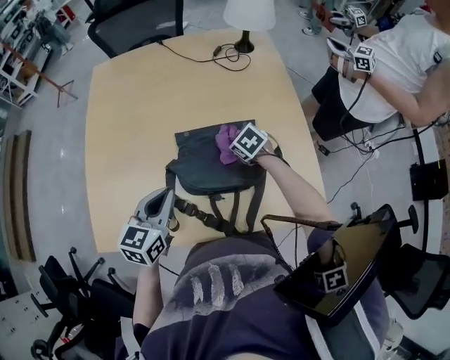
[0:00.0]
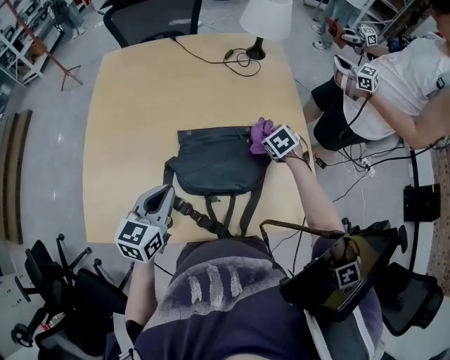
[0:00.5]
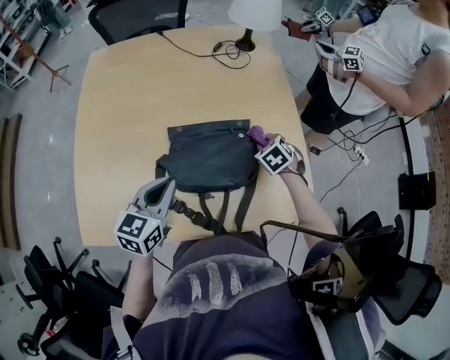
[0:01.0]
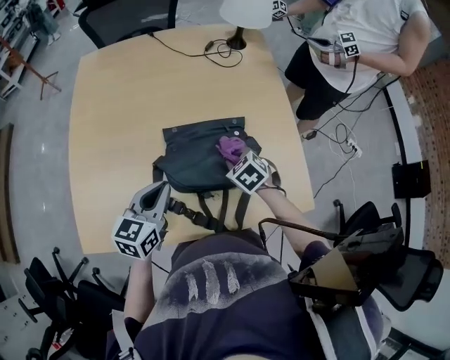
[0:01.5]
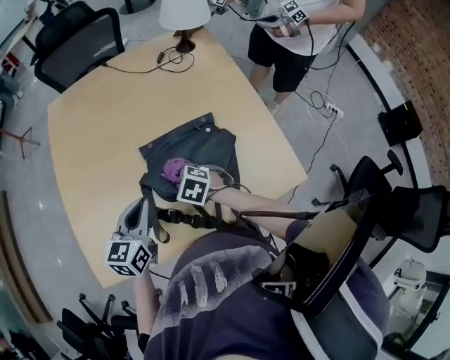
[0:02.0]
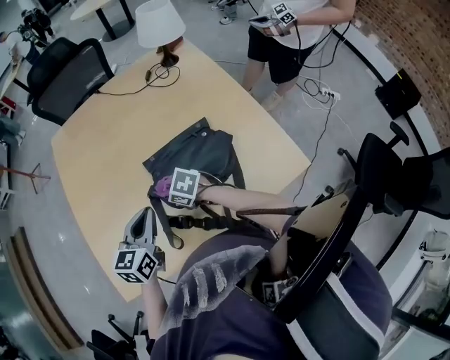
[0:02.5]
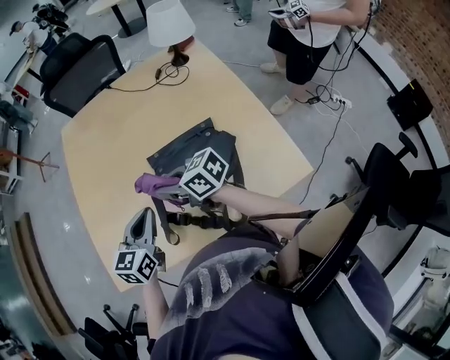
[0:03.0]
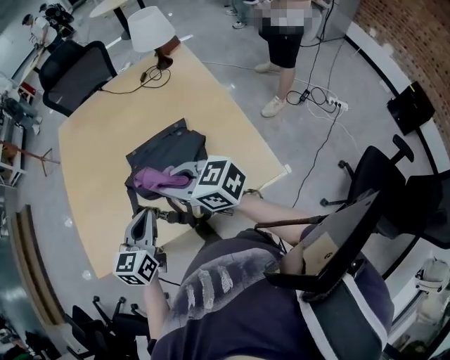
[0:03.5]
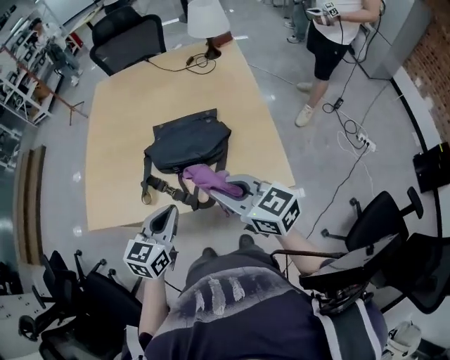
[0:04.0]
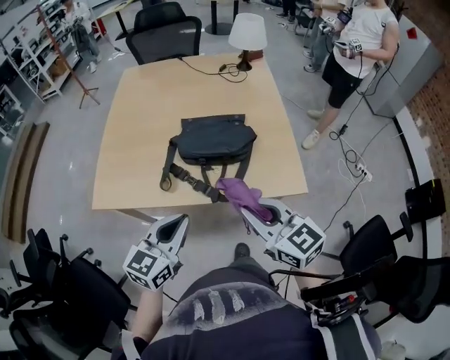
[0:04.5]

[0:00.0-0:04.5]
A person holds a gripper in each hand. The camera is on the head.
0:00.0 to 0:02.0: The right gripper is displaced to the left and backward by about 15 cm.
0:02.0 to 0:04.5: The left gripper travels backward by roughly 30 cm. Meanwhile the right gripper heads backward and upward, covering approximately 40 cm, and tips its fingers upward by about 40 degrees.

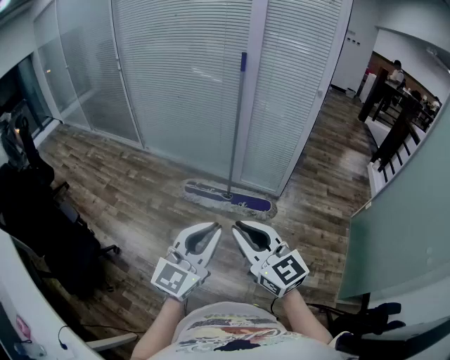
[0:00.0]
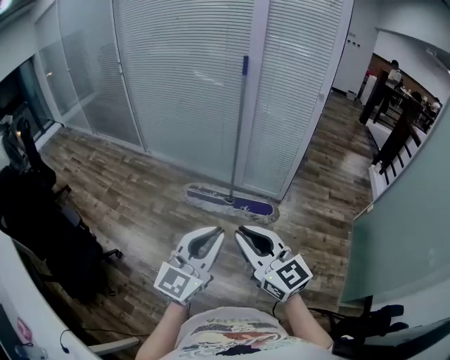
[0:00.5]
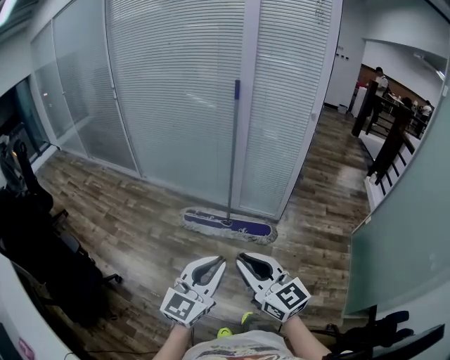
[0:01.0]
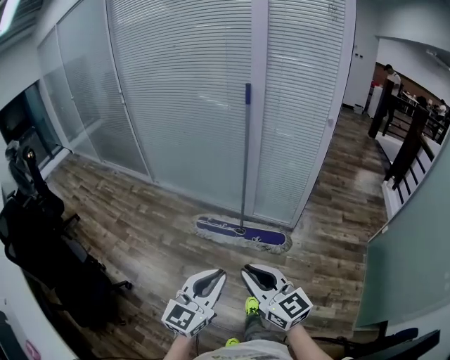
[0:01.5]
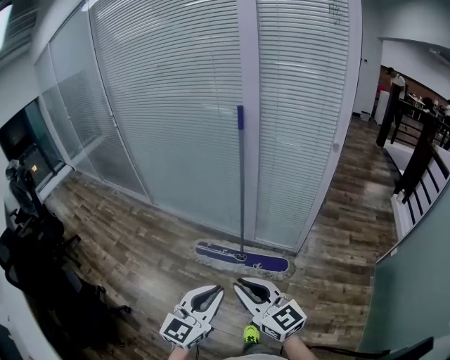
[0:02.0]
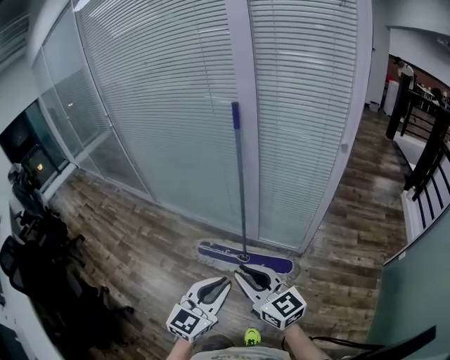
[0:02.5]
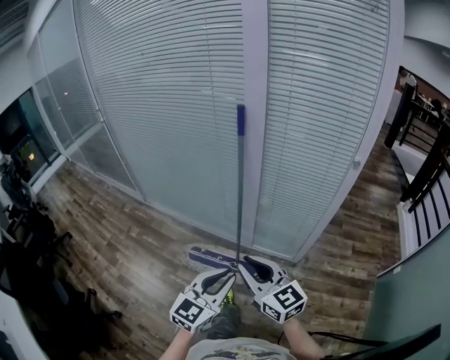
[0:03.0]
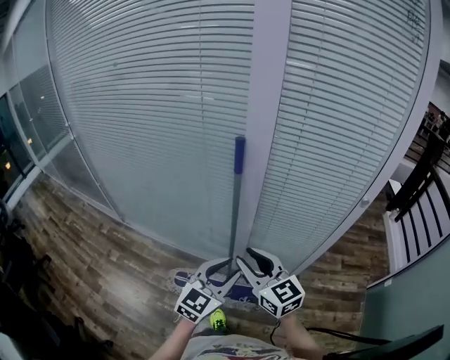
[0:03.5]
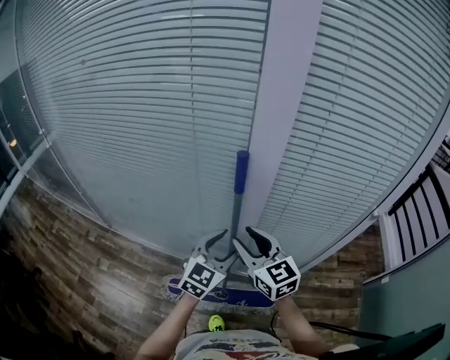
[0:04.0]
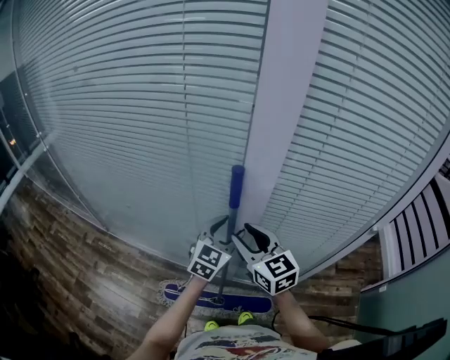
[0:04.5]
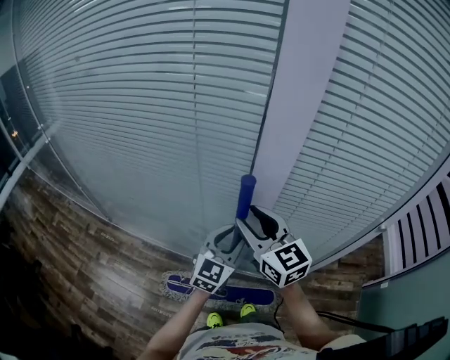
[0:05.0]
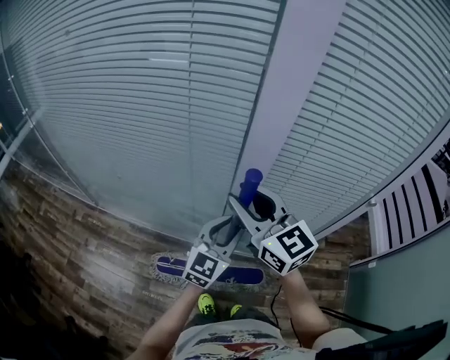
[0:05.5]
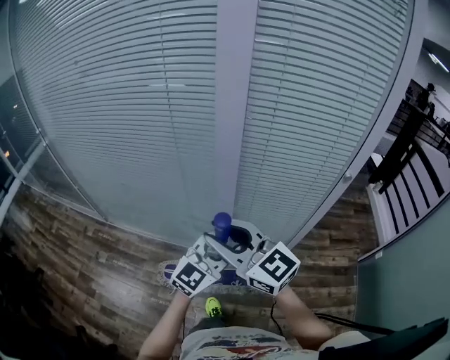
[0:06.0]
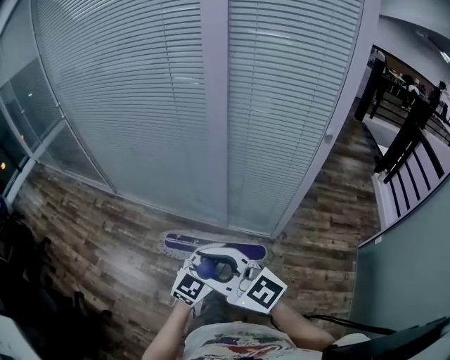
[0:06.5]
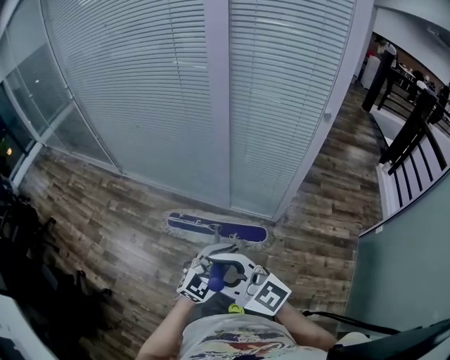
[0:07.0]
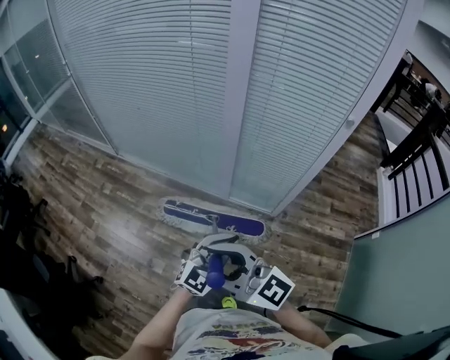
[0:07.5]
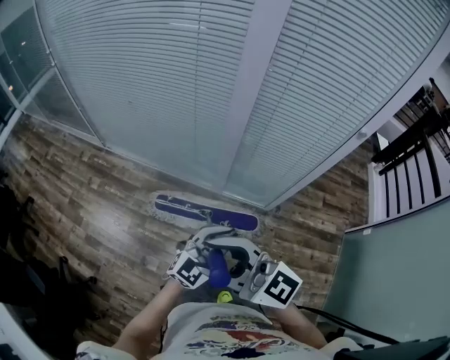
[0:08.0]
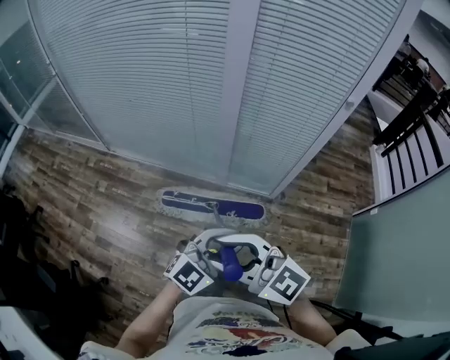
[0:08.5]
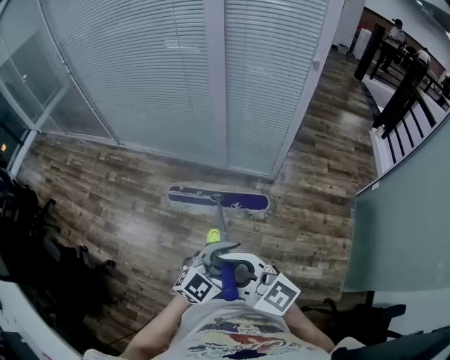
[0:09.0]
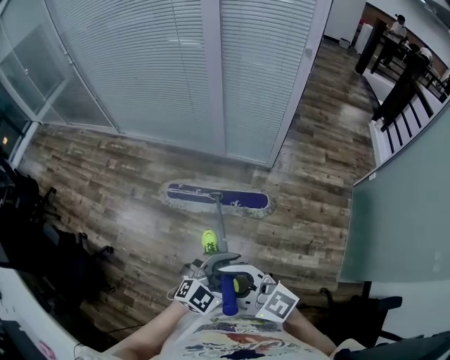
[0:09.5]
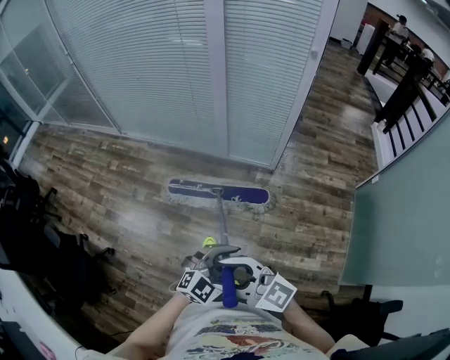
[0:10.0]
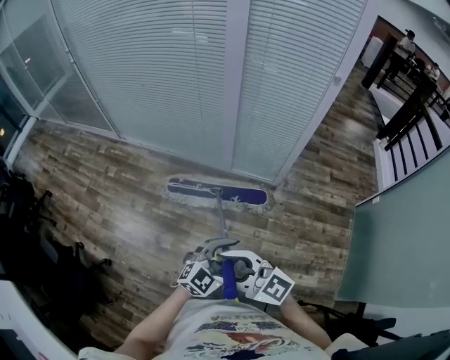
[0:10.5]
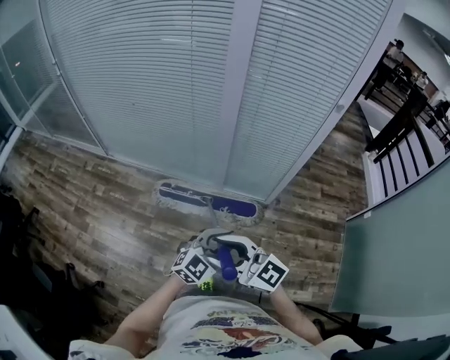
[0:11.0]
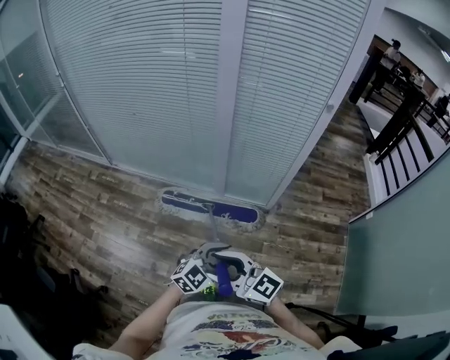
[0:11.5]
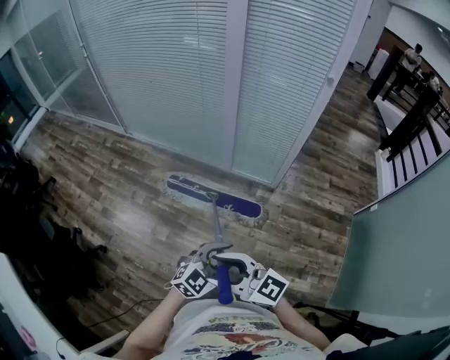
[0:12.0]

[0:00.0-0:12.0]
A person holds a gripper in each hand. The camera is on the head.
0:00.0 to 0:02.0: The two grippers go about 25 cm forward.
0:02.0 to 0:04.0: The two grippers travel together, forward, roughly 70 cm. The right gripper turns by approximately 20 degrees, and opens its fingers. Meanwhile the left gripper opens its fingers.
0:04.0 to 0:06.0: The left gripper moves backward and to the right, about 15 cm. Meanwhile the right gripper travels backward and upward by about 20 cm, and turns by roughly 20 degrees.
0:06.0 to 0:08.0: The right gripper heads backward, covering approximately 20 cm, and changes its angle by approximately 20 degrees. Meanwhile the left gripper goes about 20 cm backward and downward, and closes its fingers.
0:08.0 to 0:10.0: Both grippers are carried some 40 cm.

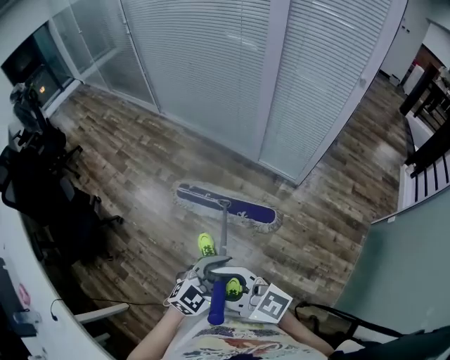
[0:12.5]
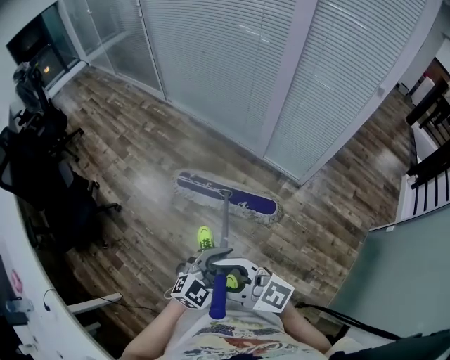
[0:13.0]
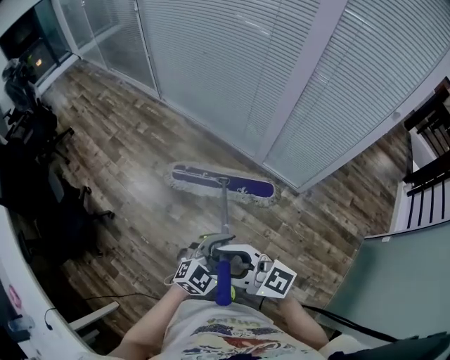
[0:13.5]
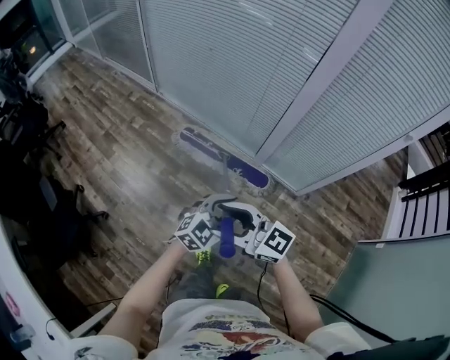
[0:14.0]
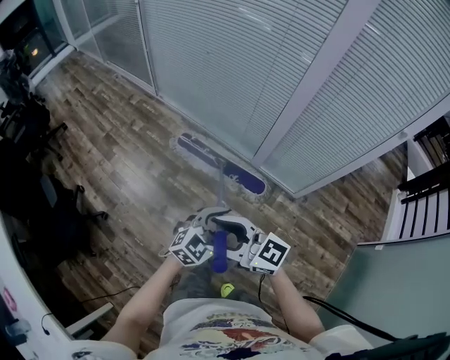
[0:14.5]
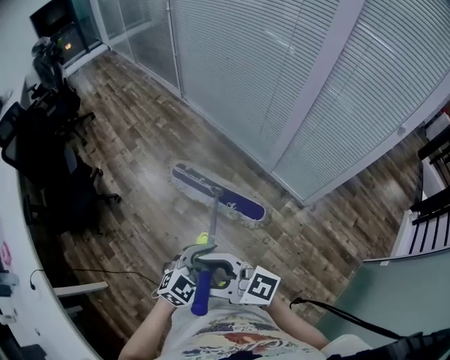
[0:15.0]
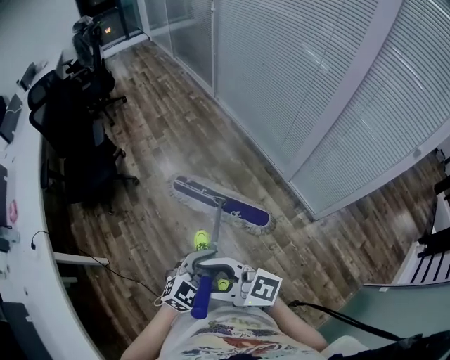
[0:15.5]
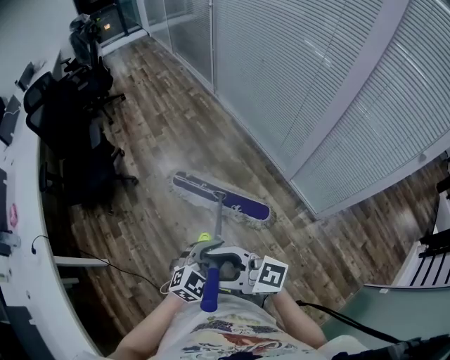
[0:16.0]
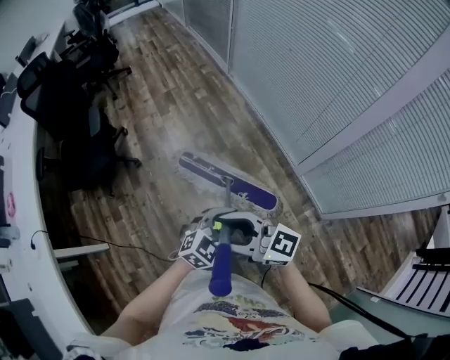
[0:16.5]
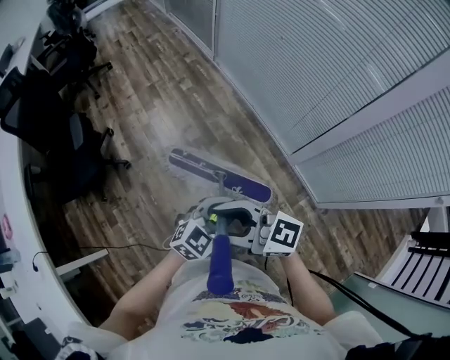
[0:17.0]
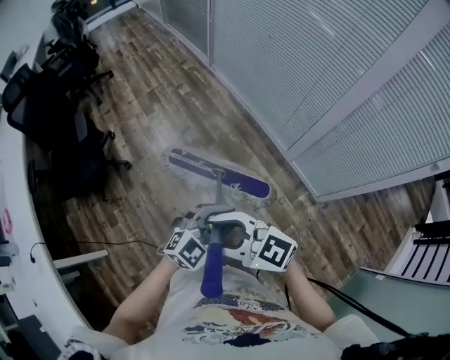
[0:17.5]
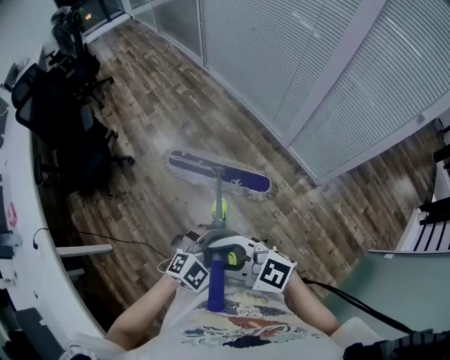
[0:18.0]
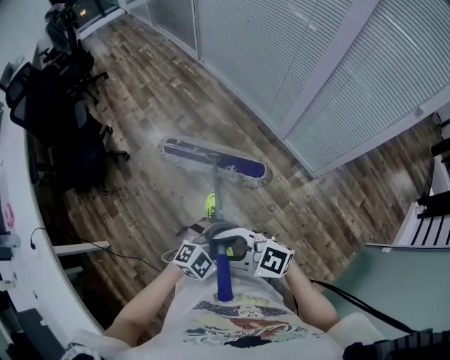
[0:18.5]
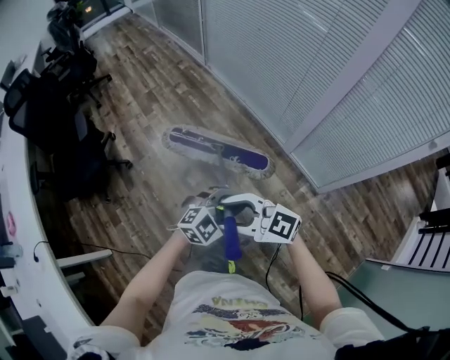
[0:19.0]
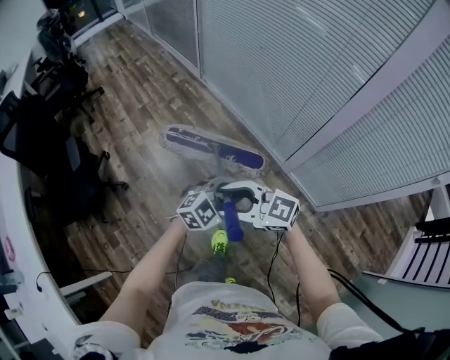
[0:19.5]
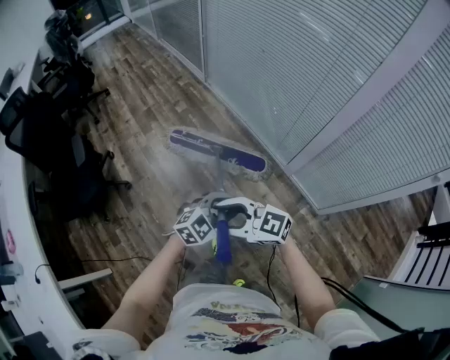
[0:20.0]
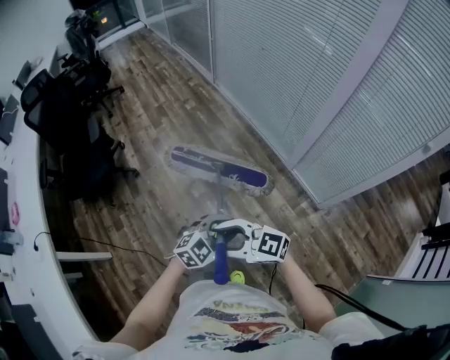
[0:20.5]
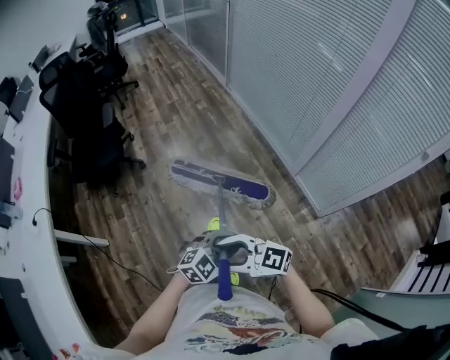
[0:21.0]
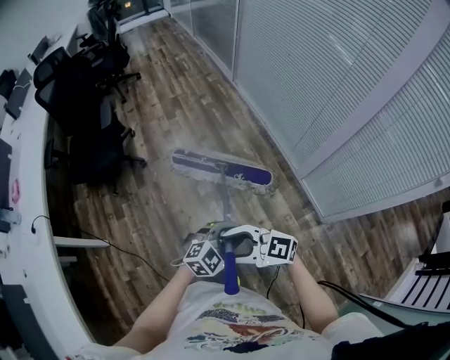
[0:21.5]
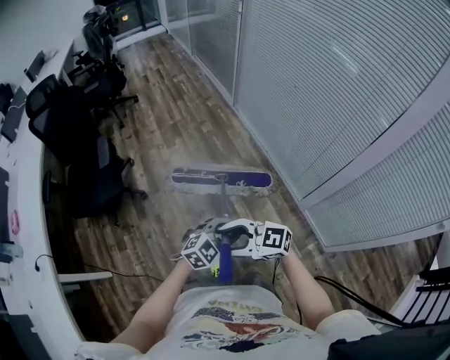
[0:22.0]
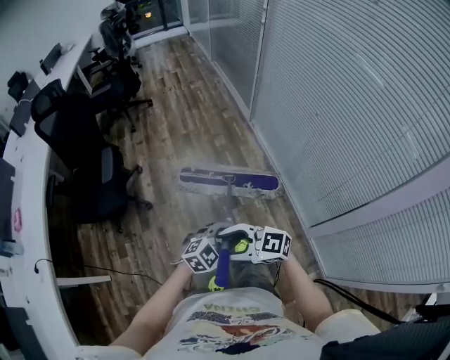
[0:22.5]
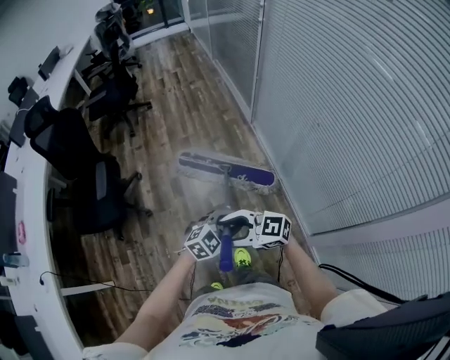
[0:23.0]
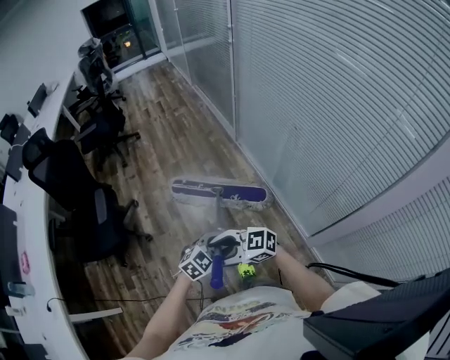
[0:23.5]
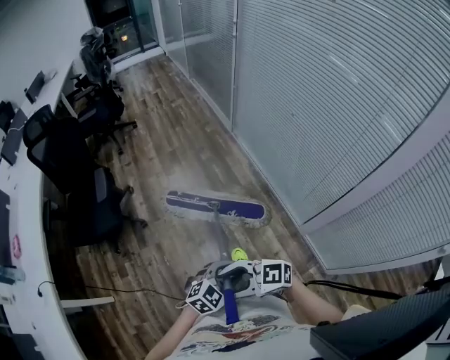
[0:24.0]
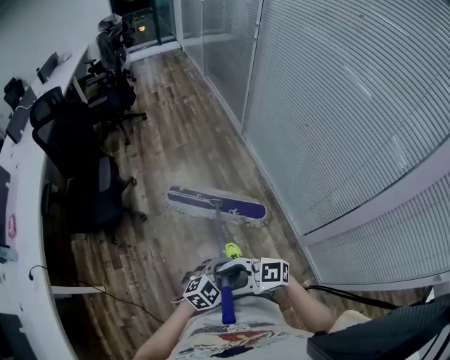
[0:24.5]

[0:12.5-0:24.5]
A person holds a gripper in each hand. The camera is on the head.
0:12.5 to 0:14.5: Both grippers travel together forward, about 35 cm.
0:14.5 to 0:16.5: The left gripper swivels some 30 degrees. Meanwhile the right gripper turns by some 30 degrees.
0:16.5 to 0:18.5: The right gripper moves some 30 cm, and rotates approximately 20 degrees. The left gripper moves approximately 30 cm, and changes its angle by approximately 30 degrees.
0:20.5 to 0:22.5: Both grippers are carried roughly 40 cm.
